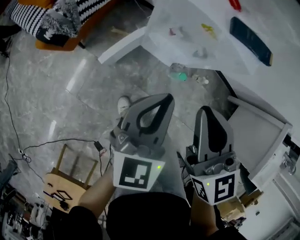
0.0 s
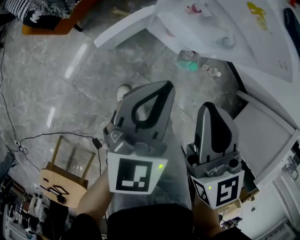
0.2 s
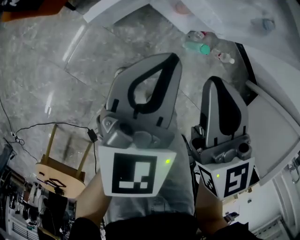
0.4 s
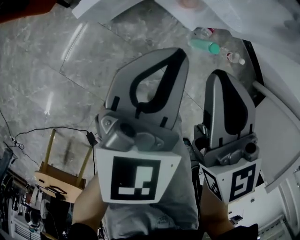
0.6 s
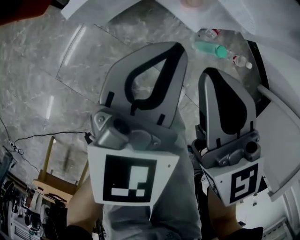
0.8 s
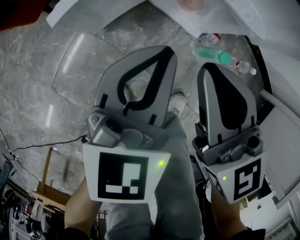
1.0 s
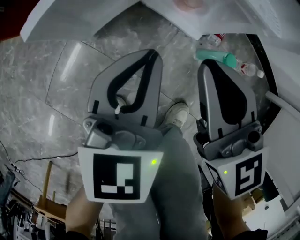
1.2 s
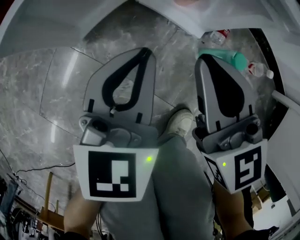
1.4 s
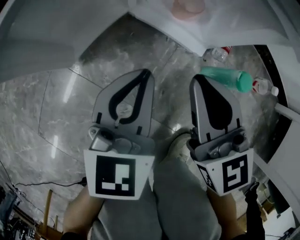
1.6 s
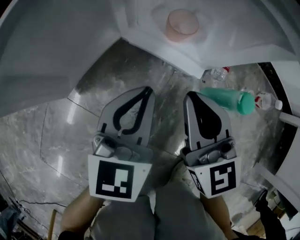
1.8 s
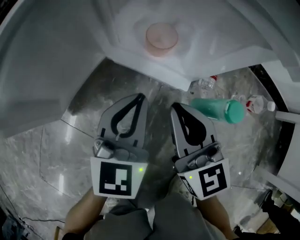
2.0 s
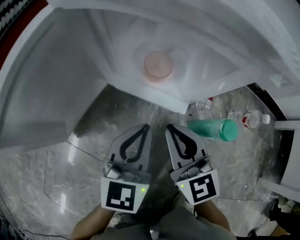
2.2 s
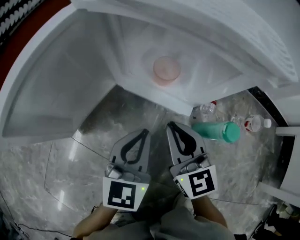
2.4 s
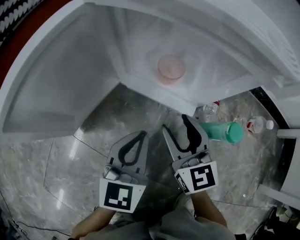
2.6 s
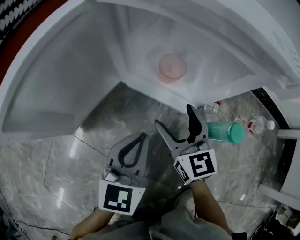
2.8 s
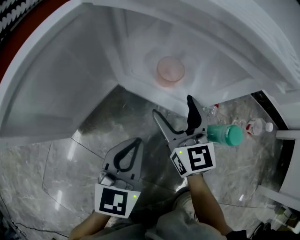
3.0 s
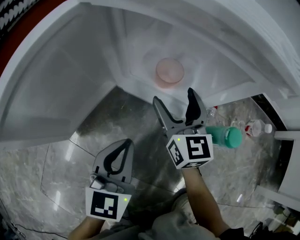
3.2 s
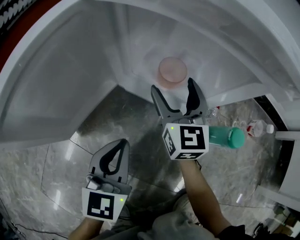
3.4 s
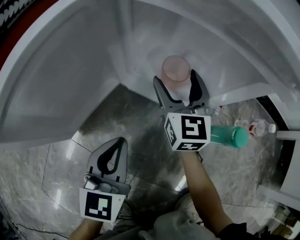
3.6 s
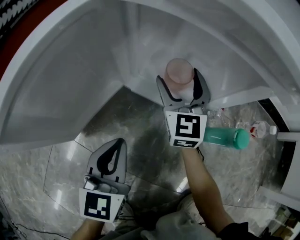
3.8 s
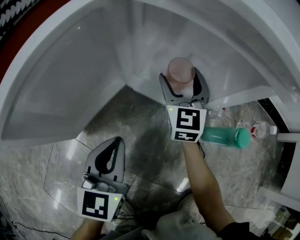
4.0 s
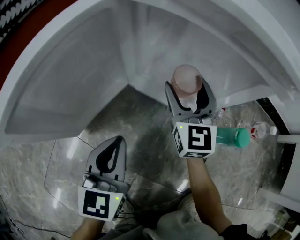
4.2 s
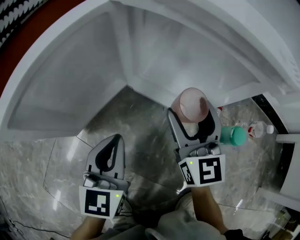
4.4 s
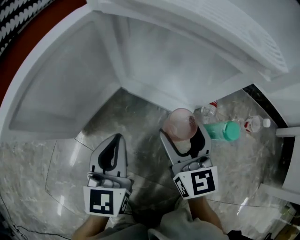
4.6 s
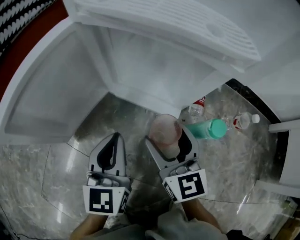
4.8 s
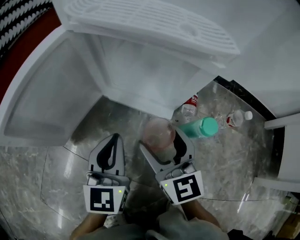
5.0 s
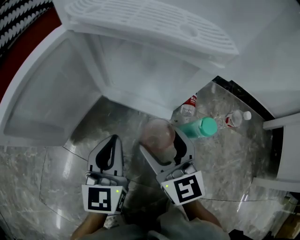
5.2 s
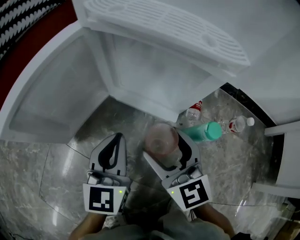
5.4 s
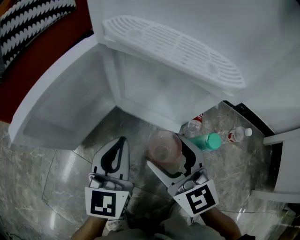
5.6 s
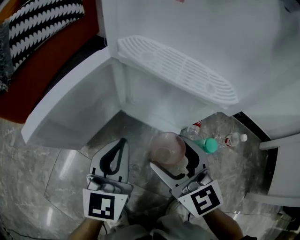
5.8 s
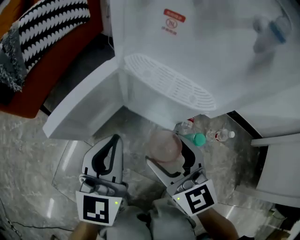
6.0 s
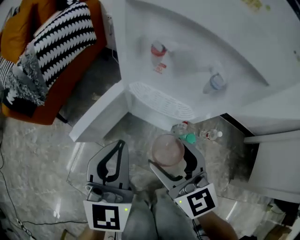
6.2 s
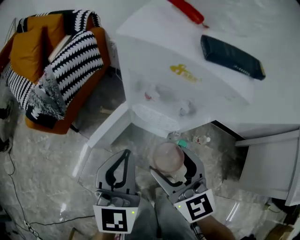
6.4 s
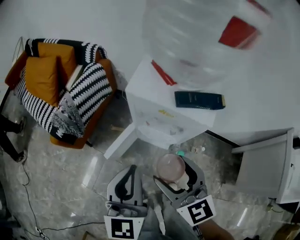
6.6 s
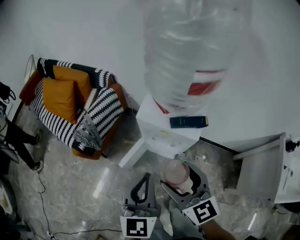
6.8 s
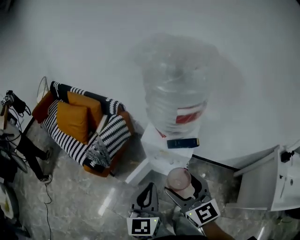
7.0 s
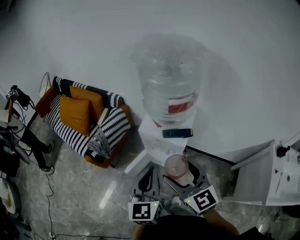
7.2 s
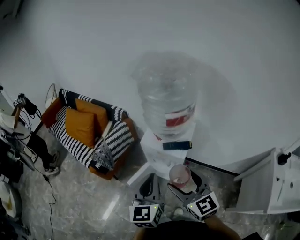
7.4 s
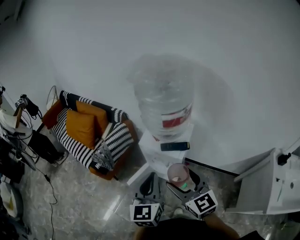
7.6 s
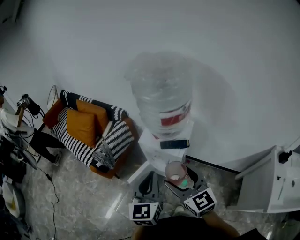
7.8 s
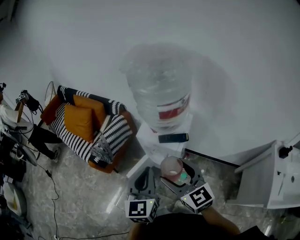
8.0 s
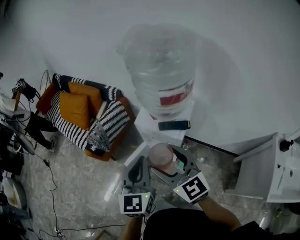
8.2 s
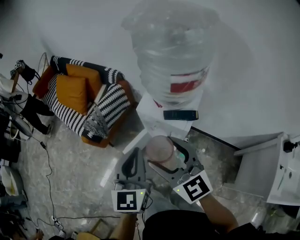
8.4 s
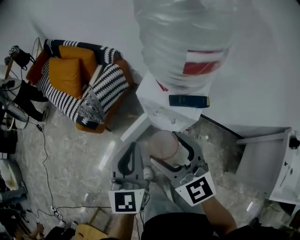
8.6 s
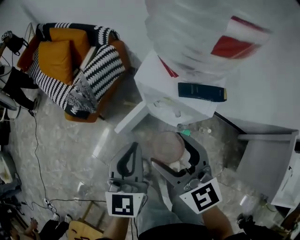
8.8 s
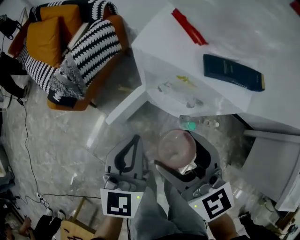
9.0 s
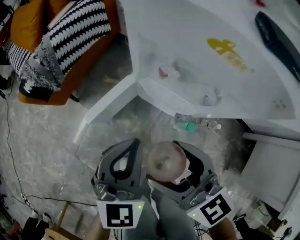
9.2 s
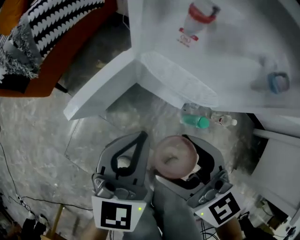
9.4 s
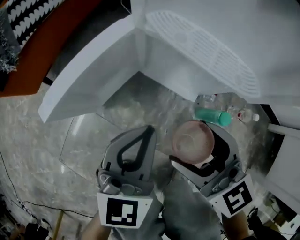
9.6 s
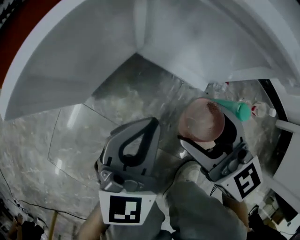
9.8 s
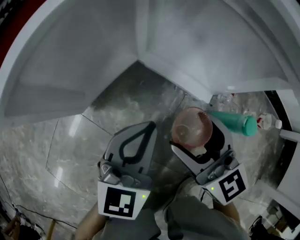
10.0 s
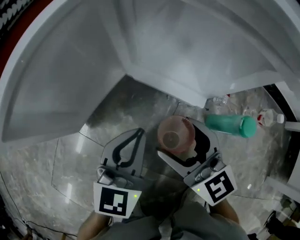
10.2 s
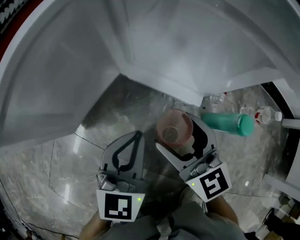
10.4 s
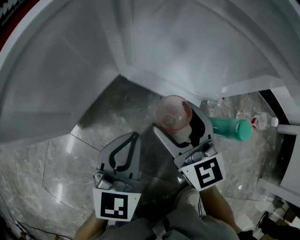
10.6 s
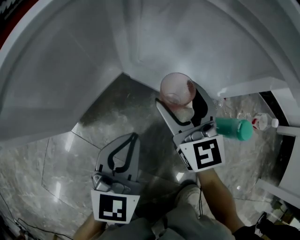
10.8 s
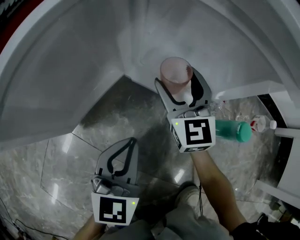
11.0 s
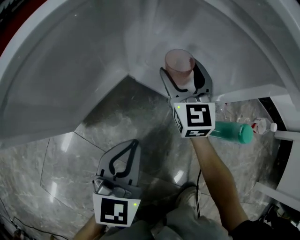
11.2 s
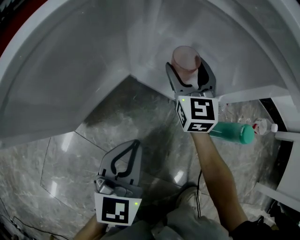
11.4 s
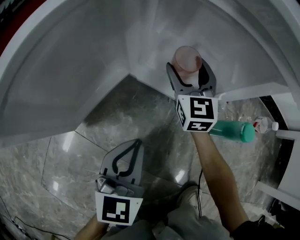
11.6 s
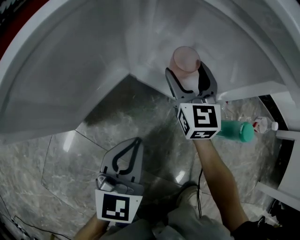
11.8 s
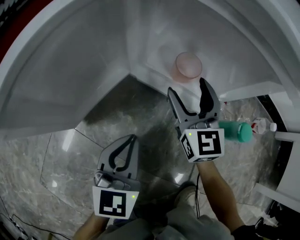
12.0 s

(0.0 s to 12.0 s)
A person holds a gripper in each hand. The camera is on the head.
0.0 s - 1.6 s: Both grippers travel together downward, approximately 60 cm.
1.6 s - 3.0 s: The right gripper heads forward and downward, covering some 15 cm, and opens; the left gripper travels downward by roughly 10 cm.
3.0 s - 4.4 s: The right gripper moves upward, some 5 cm, and reaches about 10 cm forward, then returns; the left gripper is displaced to the left by roughly 10 cm.
4.4 s - 6.0 s: The left gripper travels upward by roughly 25 cm. Meanwhile the right gripper is displaced upward and backward by approximately 20 cm, and changes its angle by about 20 degrees.
6.0 s - 7.6 s: The grippers both shift upward by roughly 60 cm.
7.6 s - 9.0 s: The grippers both shift downward by some 30 cm.
9.0 s - 10.4 s: The grippers both shift downward by roughly 60 cm.
10.4 s - 12.0 s: The right gripper is displaced forward by roughly 10 cm.

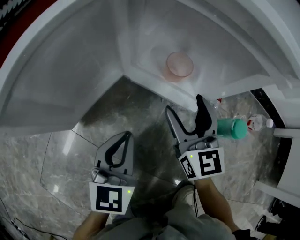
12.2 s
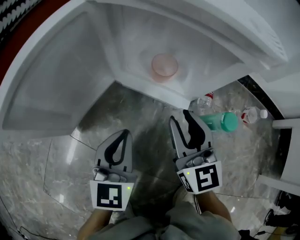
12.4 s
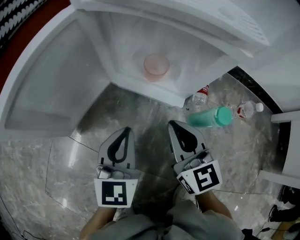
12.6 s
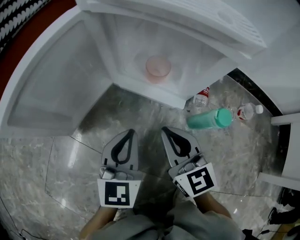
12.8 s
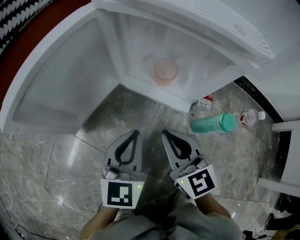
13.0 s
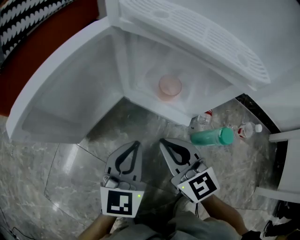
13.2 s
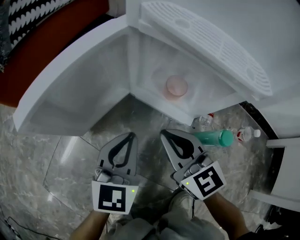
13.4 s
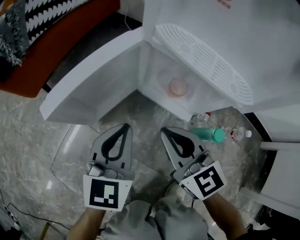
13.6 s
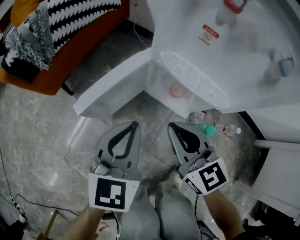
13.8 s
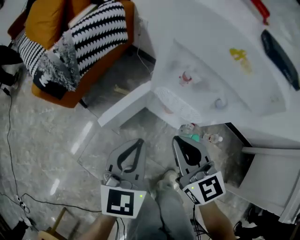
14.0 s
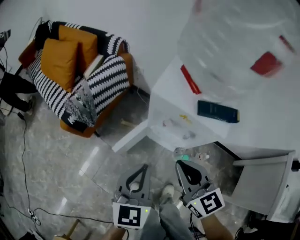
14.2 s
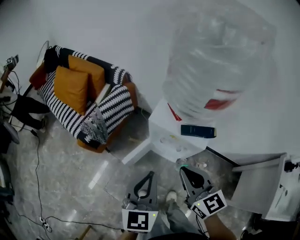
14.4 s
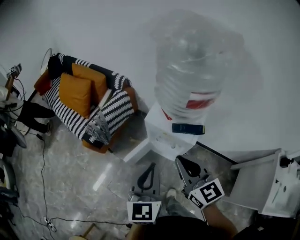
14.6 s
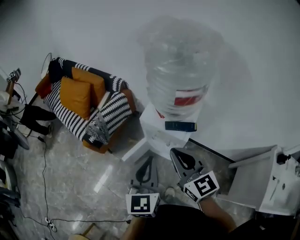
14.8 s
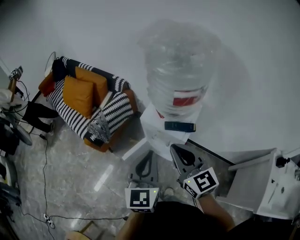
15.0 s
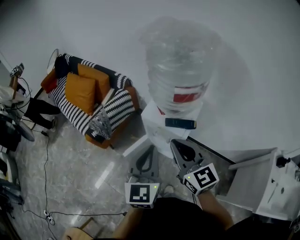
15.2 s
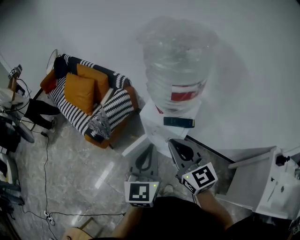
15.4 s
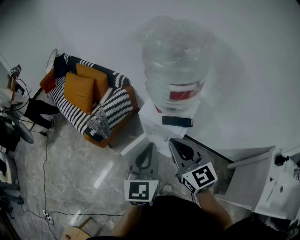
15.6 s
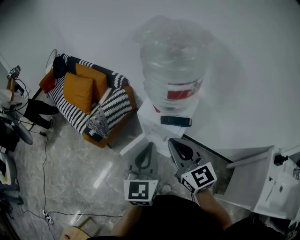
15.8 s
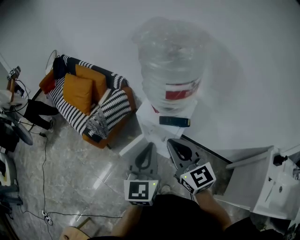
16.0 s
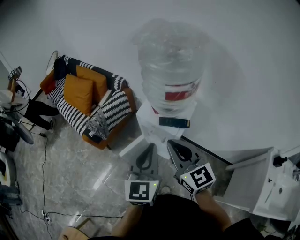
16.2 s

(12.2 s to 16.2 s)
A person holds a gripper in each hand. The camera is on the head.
12.2 s - 13.6 s: The right gripper heads upward, to the left and backward, covering about 20 cm, rotates some 30 degrees, and closes up. The left gripper travels upward by about 15 cm.
13.6 s - 14.8 s: Both grippers travel together upward, some 60 cm. The left gripper swivels roughly 20 degrees.
14.8 s - 16.2 s: The left gripper changes place by about 5 cm.

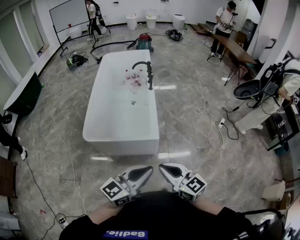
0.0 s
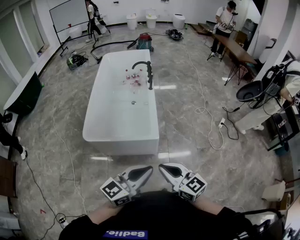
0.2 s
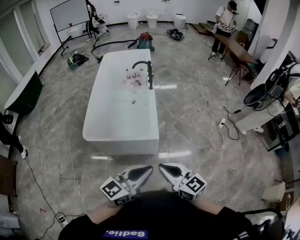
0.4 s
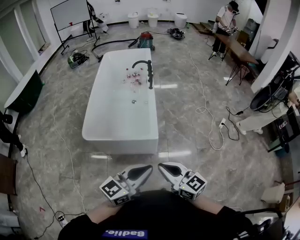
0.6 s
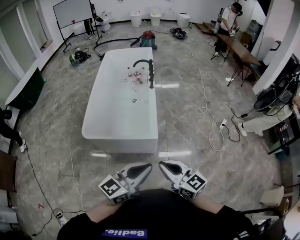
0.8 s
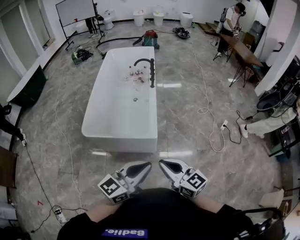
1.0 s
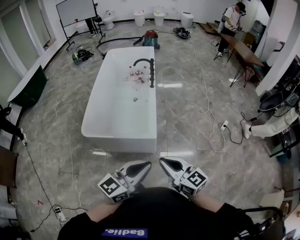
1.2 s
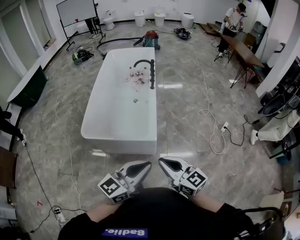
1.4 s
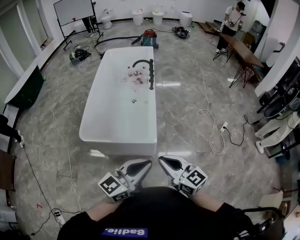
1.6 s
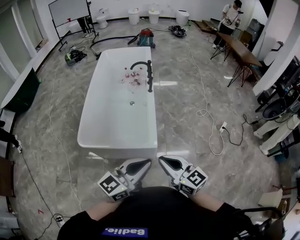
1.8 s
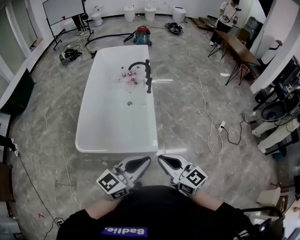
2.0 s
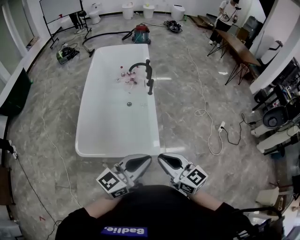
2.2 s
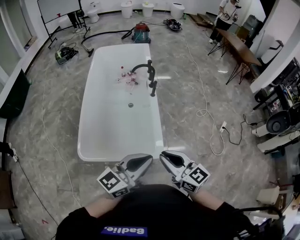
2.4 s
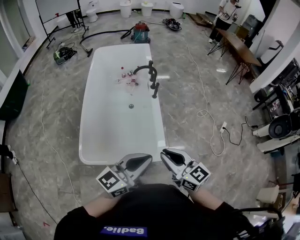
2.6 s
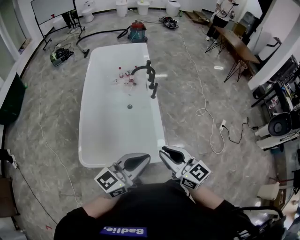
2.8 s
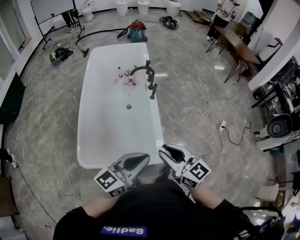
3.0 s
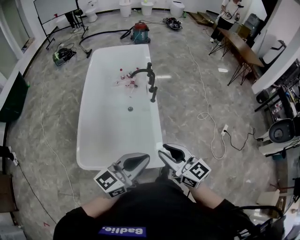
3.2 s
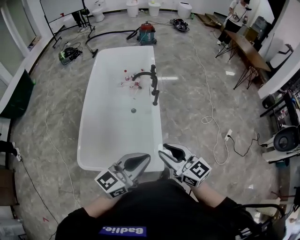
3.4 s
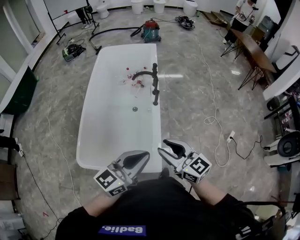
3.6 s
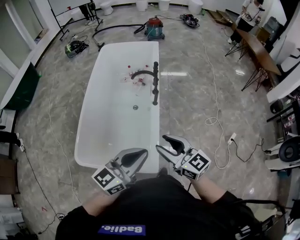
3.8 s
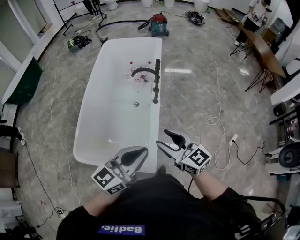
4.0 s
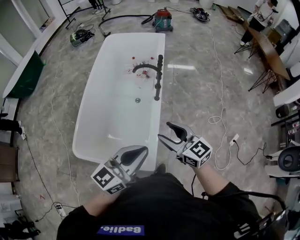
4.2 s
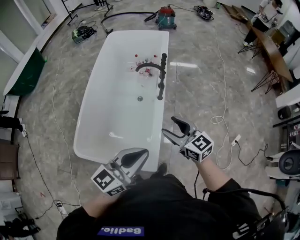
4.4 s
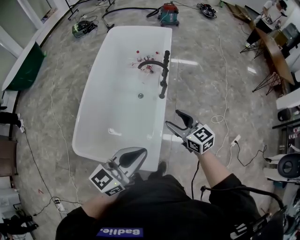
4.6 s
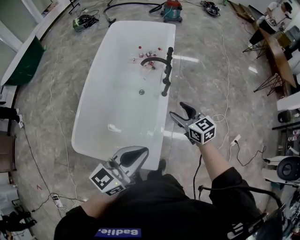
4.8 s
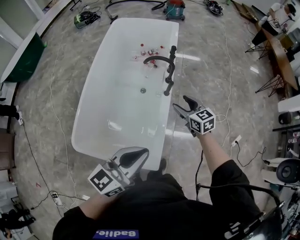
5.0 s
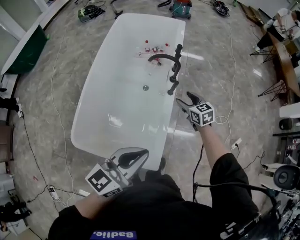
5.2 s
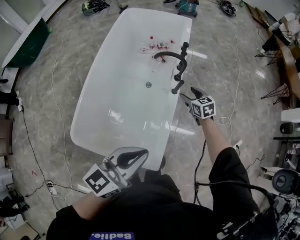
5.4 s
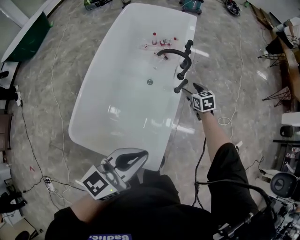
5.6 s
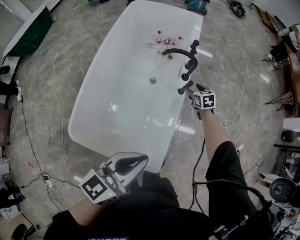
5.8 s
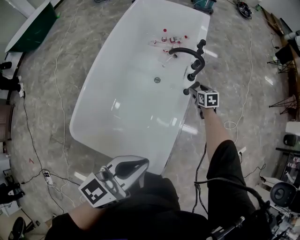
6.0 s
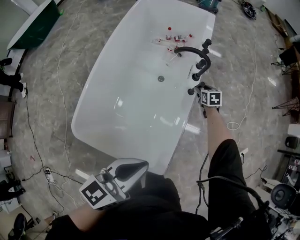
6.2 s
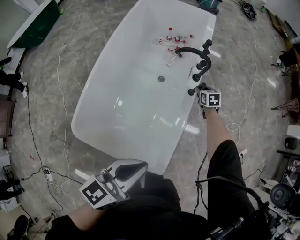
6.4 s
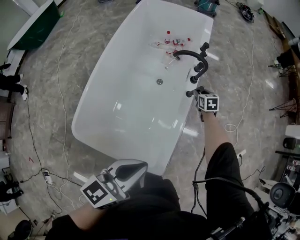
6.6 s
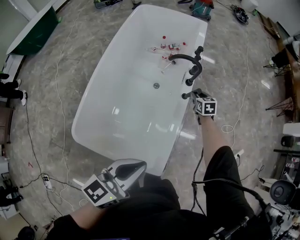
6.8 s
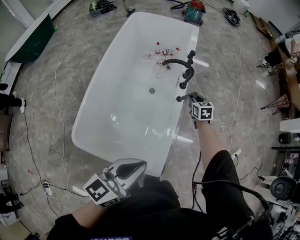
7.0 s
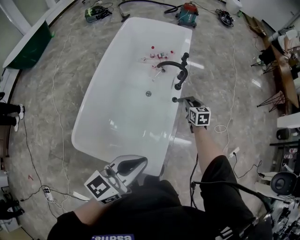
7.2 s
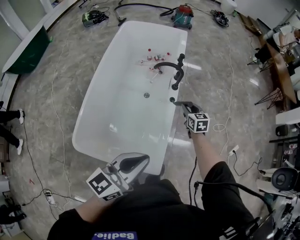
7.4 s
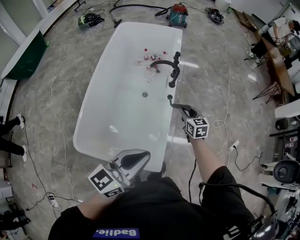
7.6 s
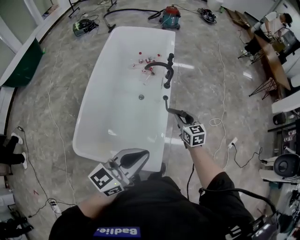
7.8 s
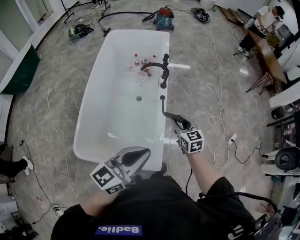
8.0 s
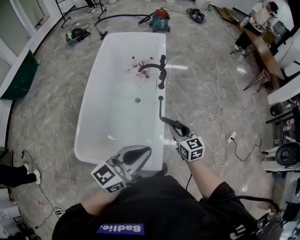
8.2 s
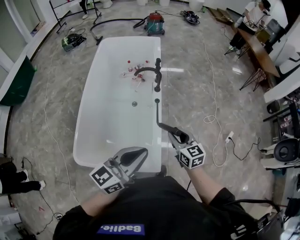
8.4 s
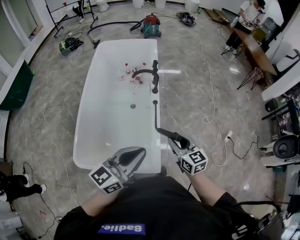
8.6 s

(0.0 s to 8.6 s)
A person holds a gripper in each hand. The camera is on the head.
0.0 s - 1.4 s: The left gripper goes roughly 5 cm to the right. The right gripper is displaced to the right and forward by about 10 cm.
1.4 s - 2.8 s: The grippers both shift forward and to the left by some 35 cm.
2.8 s - 4.4 s: Both grippers move forward and to the right, approximately 25 cm. The right gripper opens up.
4.4 s - 5.8 s: The left gripper is displaced to the left, downward and forward by some 15 cm, while the right gripper shifts roughly 40 cm forward and downward, and angles its fingers downward, by roughly 30 degrees.
5.8 s - 7.2 s: The left gripper ends up some 5 cm from where it was. The right gripper shifts some 10 cm upward and backward, and closes its fingers.
7.2 s - 8.6 s: The left gripper moves upward, some 5 cm, while the right gripper moves backward and upward, some 35 cm.
